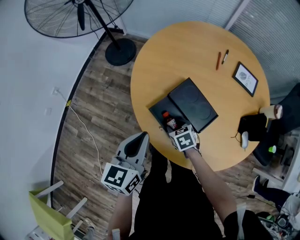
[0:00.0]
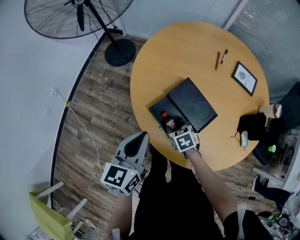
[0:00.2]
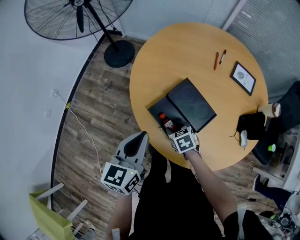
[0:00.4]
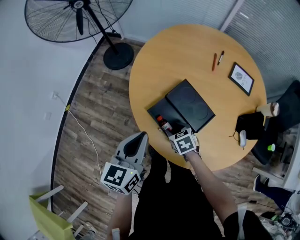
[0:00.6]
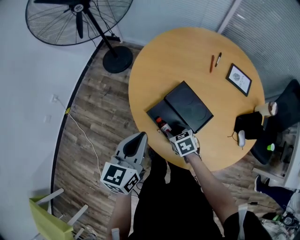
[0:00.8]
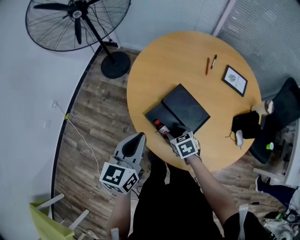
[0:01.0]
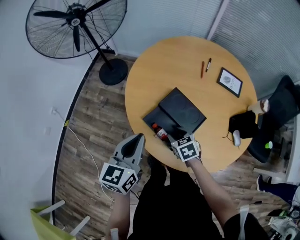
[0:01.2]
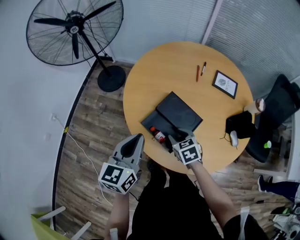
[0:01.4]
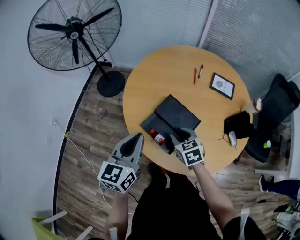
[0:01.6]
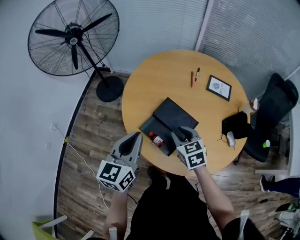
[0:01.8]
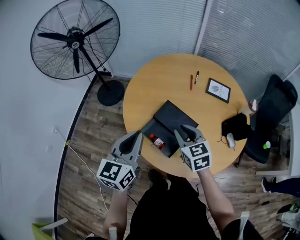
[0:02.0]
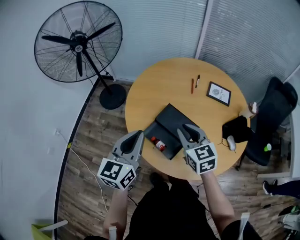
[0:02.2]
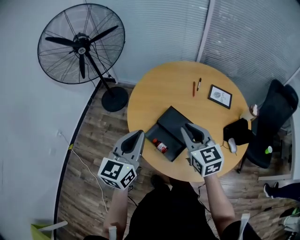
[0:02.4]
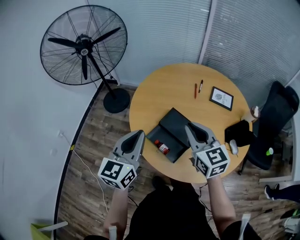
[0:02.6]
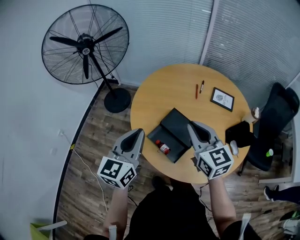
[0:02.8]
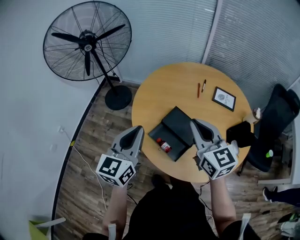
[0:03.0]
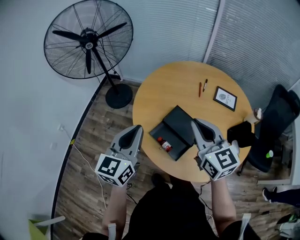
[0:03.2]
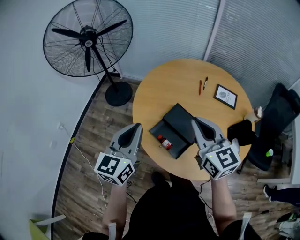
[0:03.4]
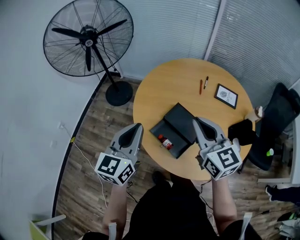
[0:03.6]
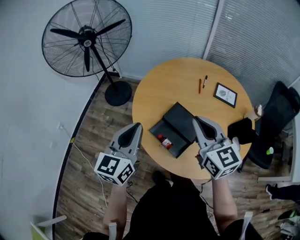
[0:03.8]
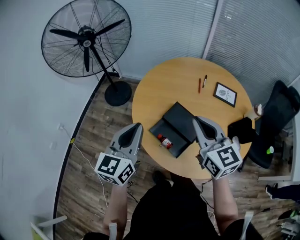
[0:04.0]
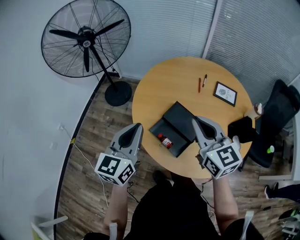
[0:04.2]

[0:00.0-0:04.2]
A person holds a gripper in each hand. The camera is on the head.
0:00.0 to 0:01.4: The left gripper moves upward, some 5 cm. The right gripper travels upward by approximately 10 cm.
0:01.4 to 0:02.8: The left gripper travels upward by some 10 cm; the right gripper shifts approximately 25 cm upward, tilts its fingers about 40 degrees upward, and closes.
0:02.8 to 0:04.2: The grippers make only small movements.

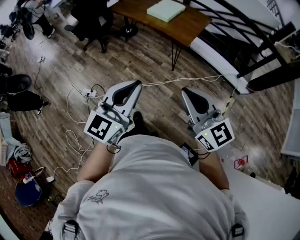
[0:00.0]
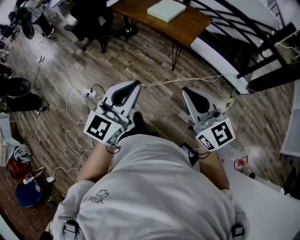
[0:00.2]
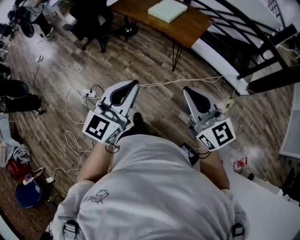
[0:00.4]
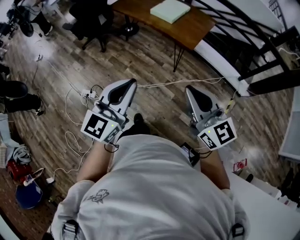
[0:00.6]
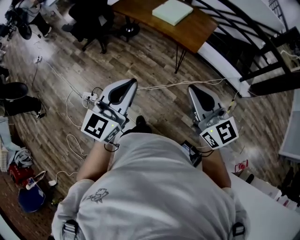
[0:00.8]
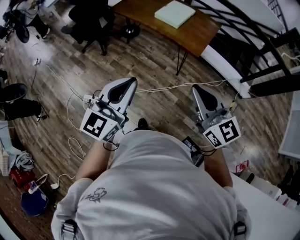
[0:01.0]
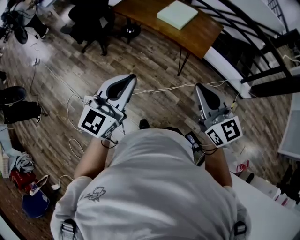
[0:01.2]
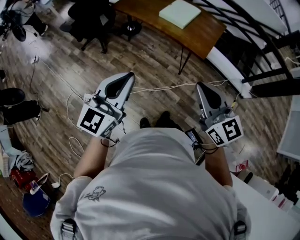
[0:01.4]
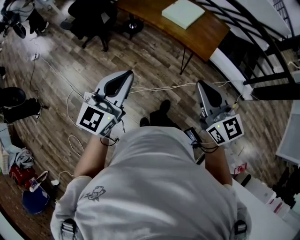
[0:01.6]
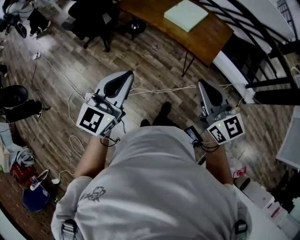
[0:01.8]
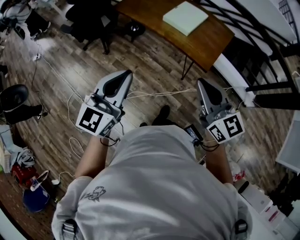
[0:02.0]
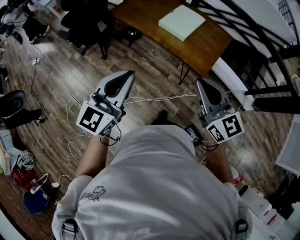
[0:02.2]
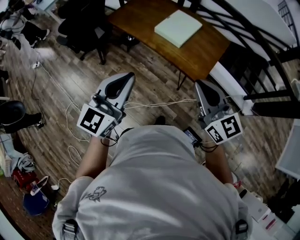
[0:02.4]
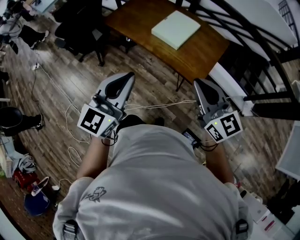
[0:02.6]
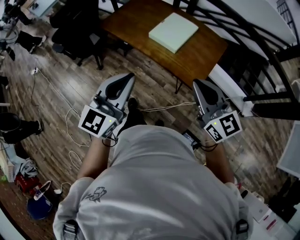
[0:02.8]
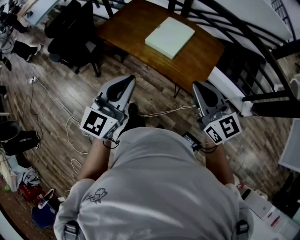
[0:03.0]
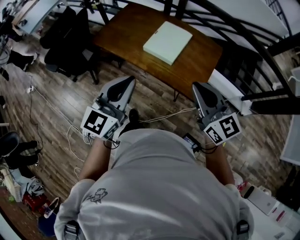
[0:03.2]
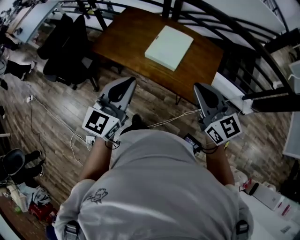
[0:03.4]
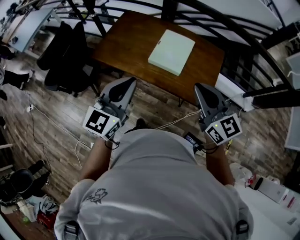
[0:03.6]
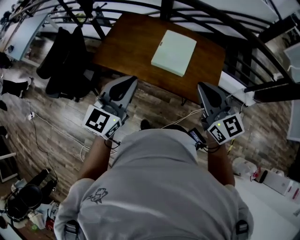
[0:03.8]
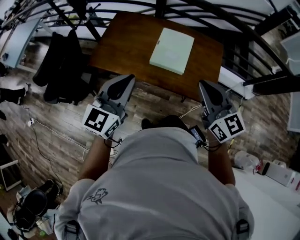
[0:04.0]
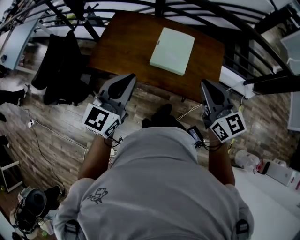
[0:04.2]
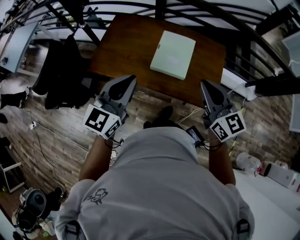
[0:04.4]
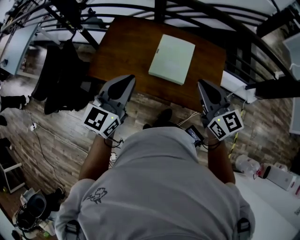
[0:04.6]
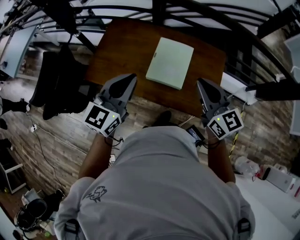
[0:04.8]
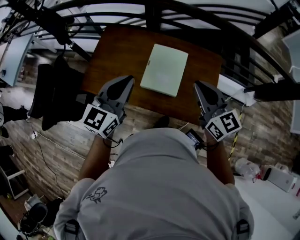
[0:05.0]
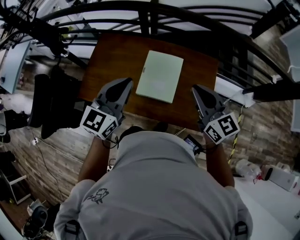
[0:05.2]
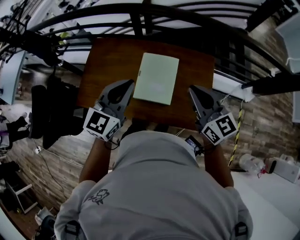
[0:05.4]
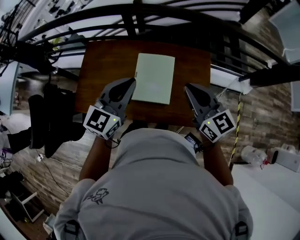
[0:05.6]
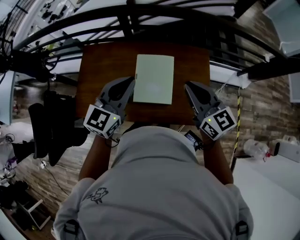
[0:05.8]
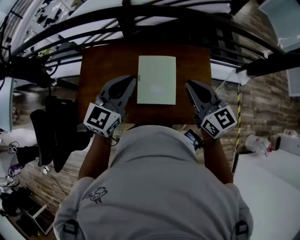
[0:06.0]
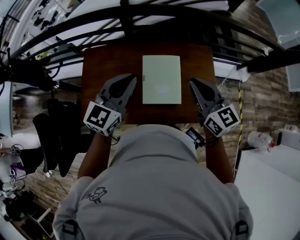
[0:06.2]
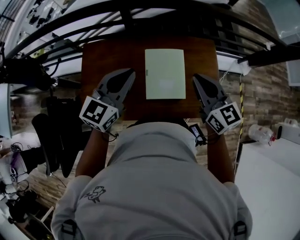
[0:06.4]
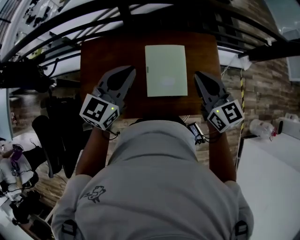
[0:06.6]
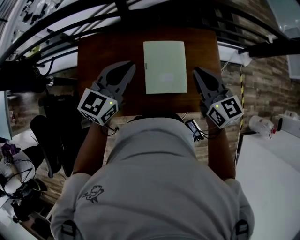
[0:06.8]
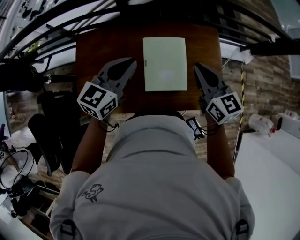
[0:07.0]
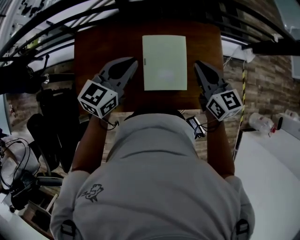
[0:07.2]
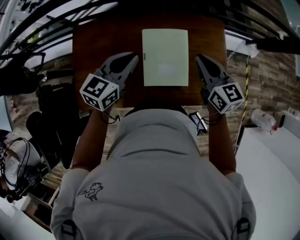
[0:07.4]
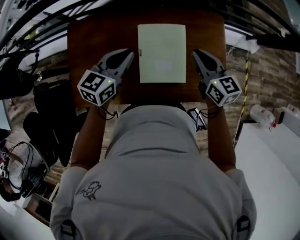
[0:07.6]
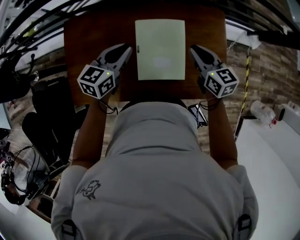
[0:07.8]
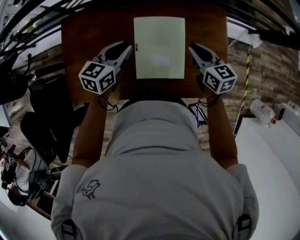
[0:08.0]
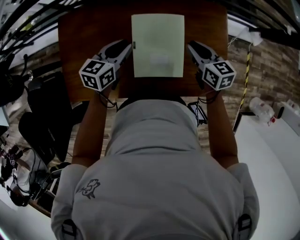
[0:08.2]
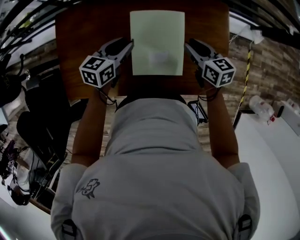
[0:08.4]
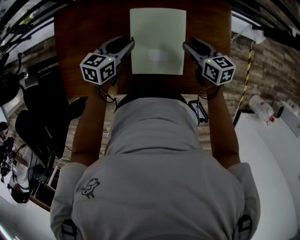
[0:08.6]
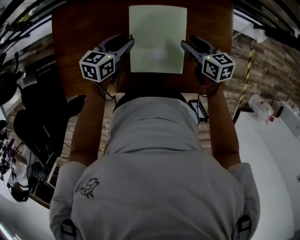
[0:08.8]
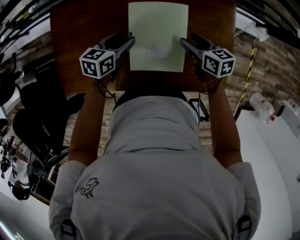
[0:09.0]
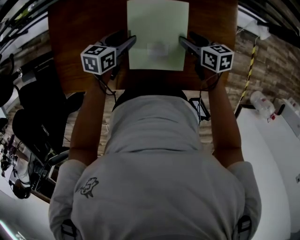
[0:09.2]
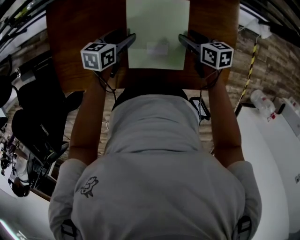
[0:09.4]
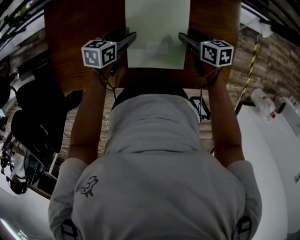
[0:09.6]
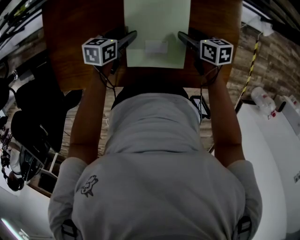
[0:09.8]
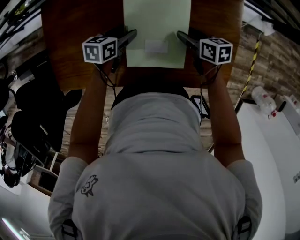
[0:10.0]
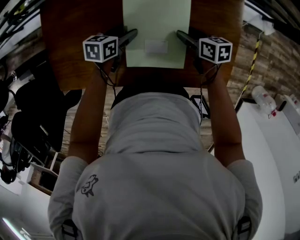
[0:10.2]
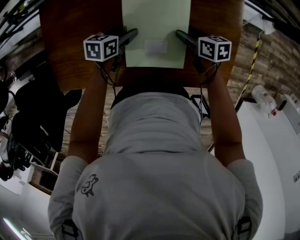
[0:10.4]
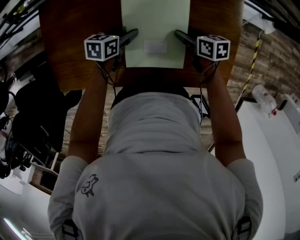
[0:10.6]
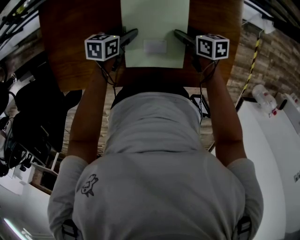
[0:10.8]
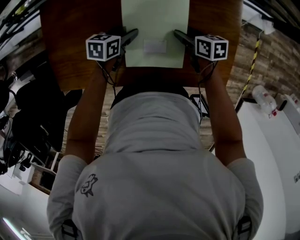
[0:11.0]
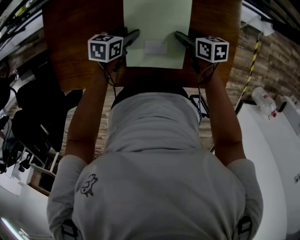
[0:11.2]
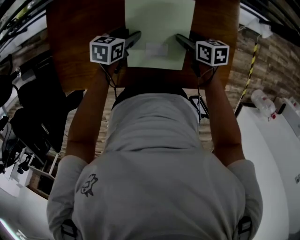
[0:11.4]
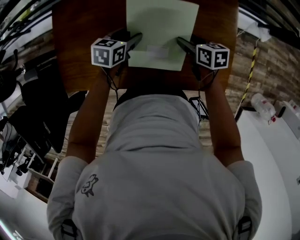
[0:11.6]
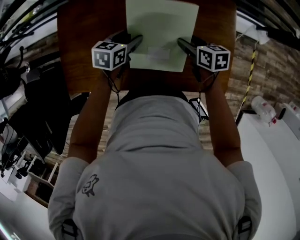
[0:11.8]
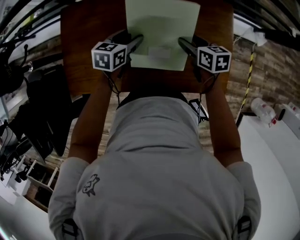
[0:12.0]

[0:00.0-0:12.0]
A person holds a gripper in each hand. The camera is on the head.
0:00.0 to 0:01.6: The two grippers go some 30 cm forward and to the left.
0:01.6 to 0:03.0: Both grippers travel together forward and to the right, some 30 cm.
0:03.0 to 0:04.4: The two grippers go some 25 cm forward and to the left. The right gripper turns by roughly 20 degrees.
0:04.4 to 0:06.0: The grippers both shift forward by some 25 cm.
0:06.0 to 0:07.6: Both grippers travel together downward and forward, some 20 cm. The left gripper swivels approximately 20 degrees.
0:07.6 to 0:09.0: Both grippers move downward, approximately 15 cm. The right gripper turns by approximately 30 degrees, and opens; the left gripper changes its angle by about 20 degrees, and opens up.
0:09.0 to 0:10.4: The two grippers go approximately 10 cm downward.
0:10.4 to 0:12.0: The grippers both shift upward by some 10 cm.

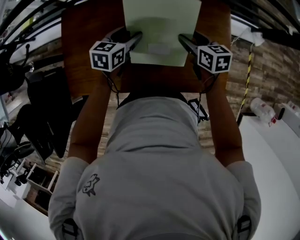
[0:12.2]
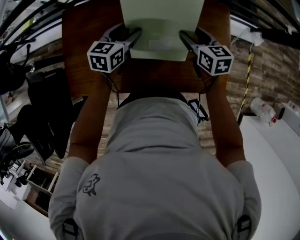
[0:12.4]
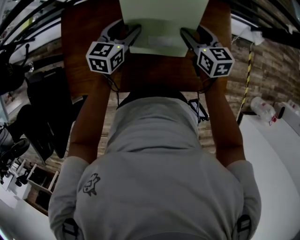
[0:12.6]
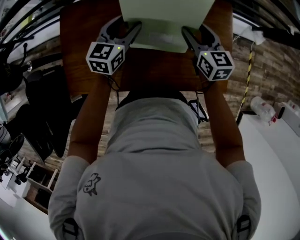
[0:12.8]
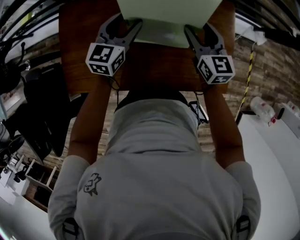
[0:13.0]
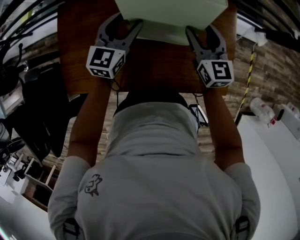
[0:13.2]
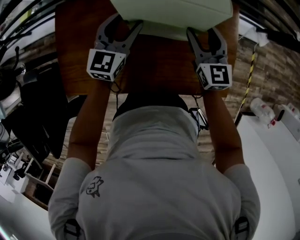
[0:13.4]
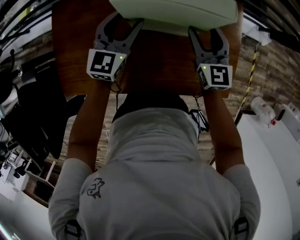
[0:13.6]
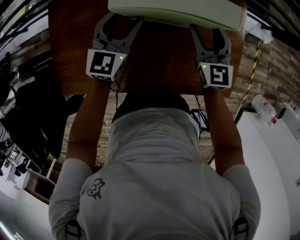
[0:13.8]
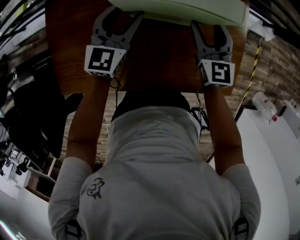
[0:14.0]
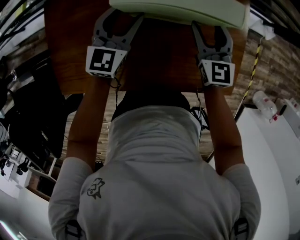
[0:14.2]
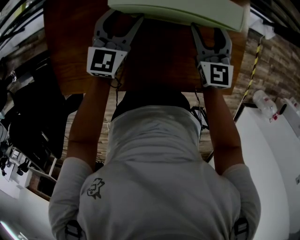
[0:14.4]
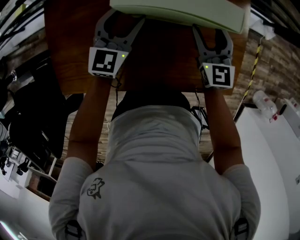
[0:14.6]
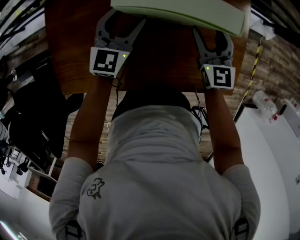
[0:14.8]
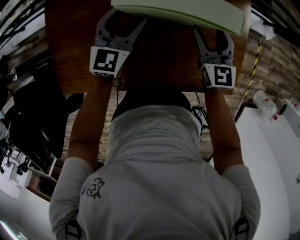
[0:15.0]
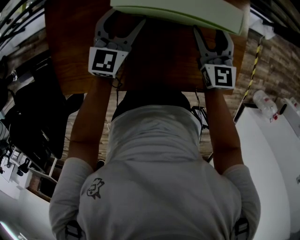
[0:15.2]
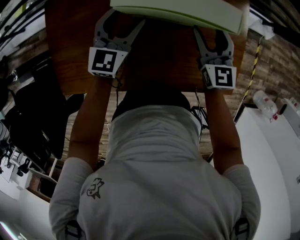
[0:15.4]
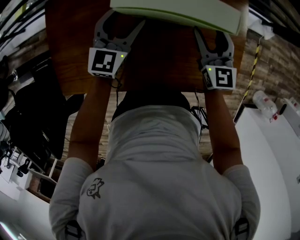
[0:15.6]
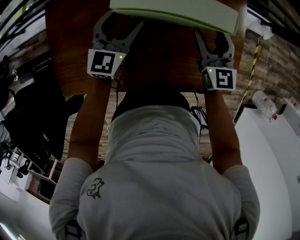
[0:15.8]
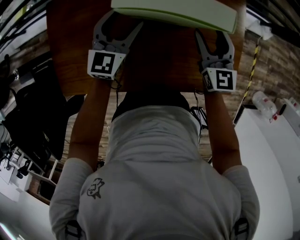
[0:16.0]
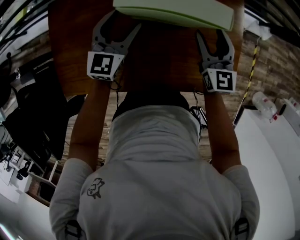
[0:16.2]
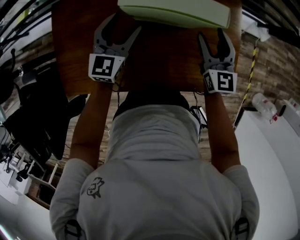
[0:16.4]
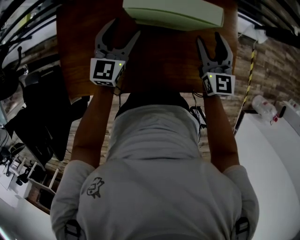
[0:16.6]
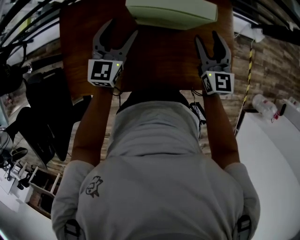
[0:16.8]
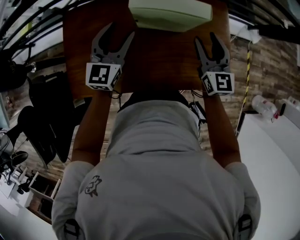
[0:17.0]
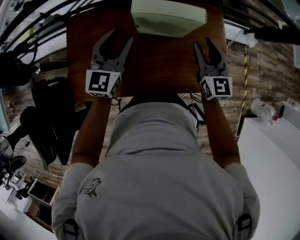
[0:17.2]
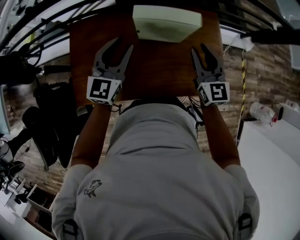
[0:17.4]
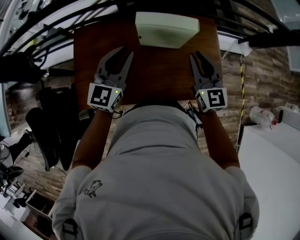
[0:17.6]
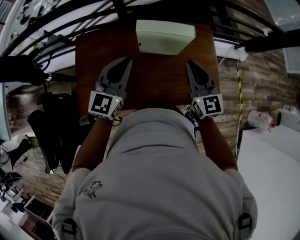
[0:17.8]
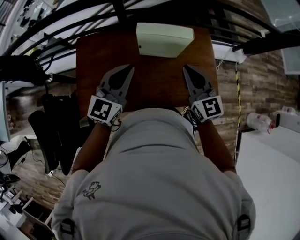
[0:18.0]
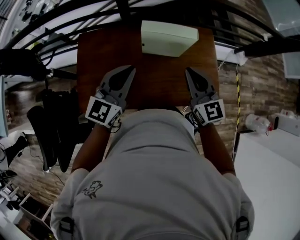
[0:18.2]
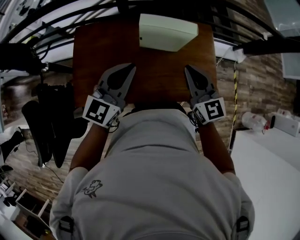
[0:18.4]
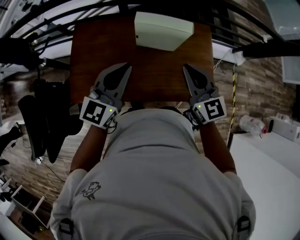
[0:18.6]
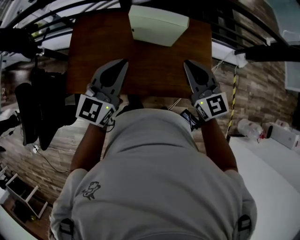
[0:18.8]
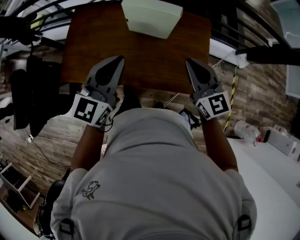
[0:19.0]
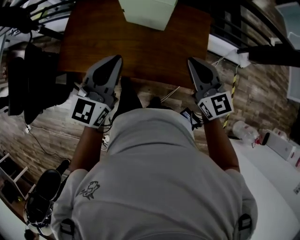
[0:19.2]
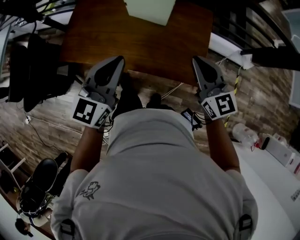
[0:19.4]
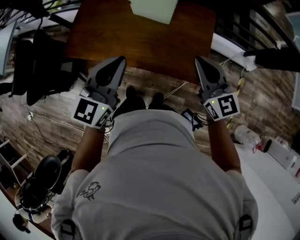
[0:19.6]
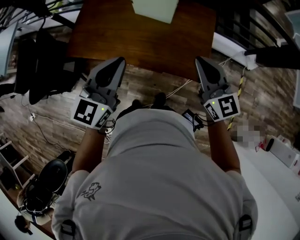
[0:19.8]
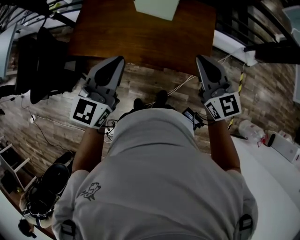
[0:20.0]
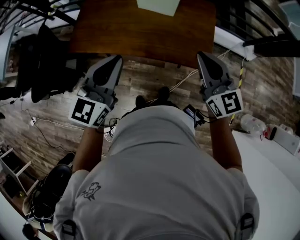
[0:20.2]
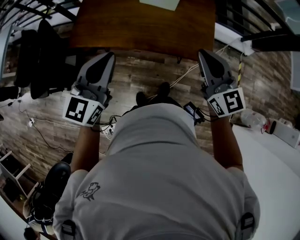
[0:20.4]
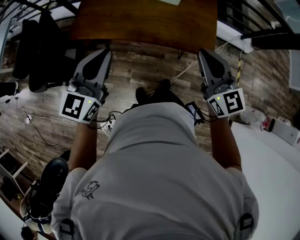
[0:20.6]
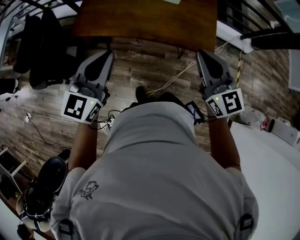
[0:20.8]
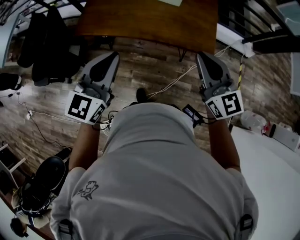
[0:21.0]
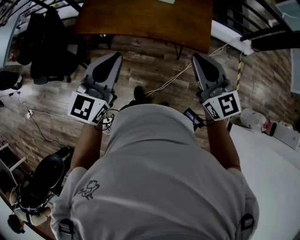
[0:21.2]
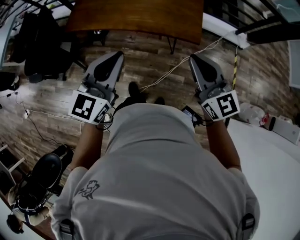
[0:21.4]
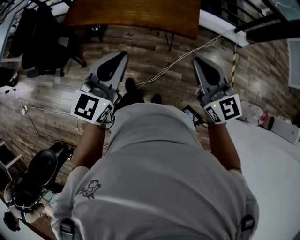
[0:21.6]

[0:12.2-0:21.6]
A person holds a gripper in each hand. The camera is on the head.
0:12.2 to 0:13.8: The right gripper turns by approximately 40 degrees, while the left gripper swivels some 30 degrees.
0:13.8 to 0:15.4: The grippers stay close to where they were, moving slightly.
0:15.4 to 0:17.0: The grippers both shift upward and backward by approximately 15 cm.
0:17.0 to 0:18.4: The left gripper moves backward and upward, about 20 cm, and closes. The right gripper shifts roughly 15 cm backward, upward and to the left, and closes.
0:18.4 to 0:20.0: Both grippers move backward and to the right, about 25 cm.
0:20.0 to 0:21.6: The grippers both shift backward by roughly 25 cm.
